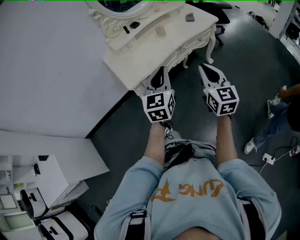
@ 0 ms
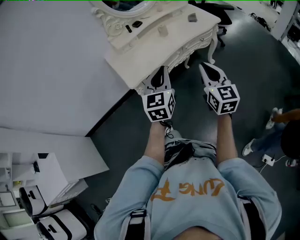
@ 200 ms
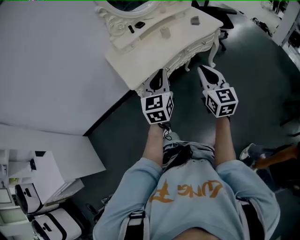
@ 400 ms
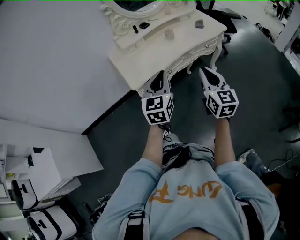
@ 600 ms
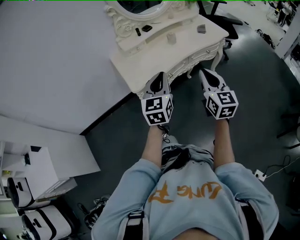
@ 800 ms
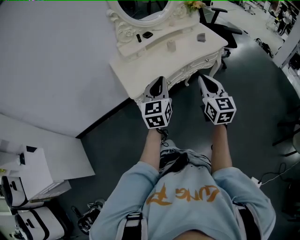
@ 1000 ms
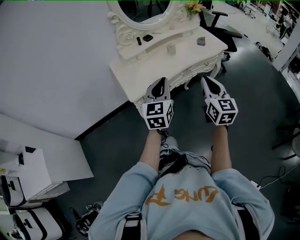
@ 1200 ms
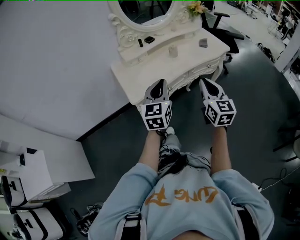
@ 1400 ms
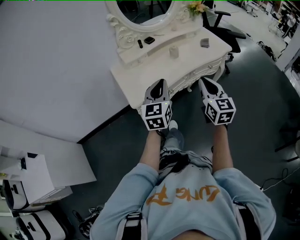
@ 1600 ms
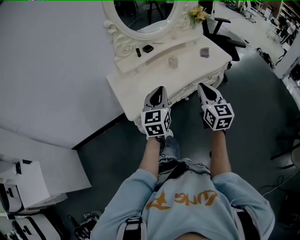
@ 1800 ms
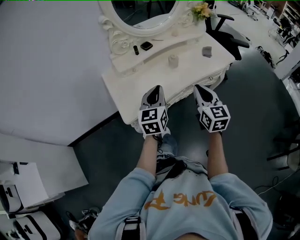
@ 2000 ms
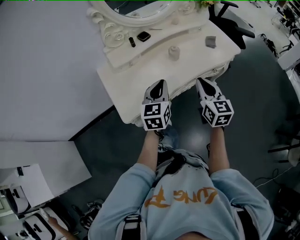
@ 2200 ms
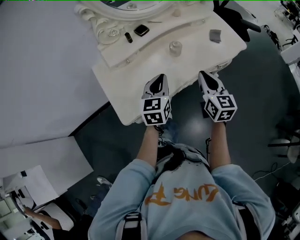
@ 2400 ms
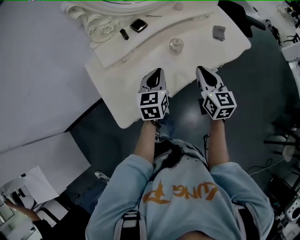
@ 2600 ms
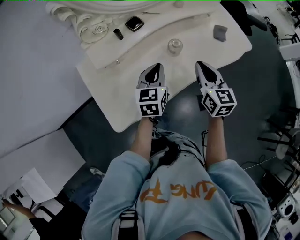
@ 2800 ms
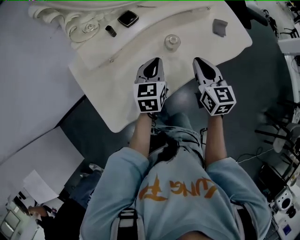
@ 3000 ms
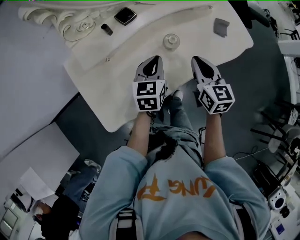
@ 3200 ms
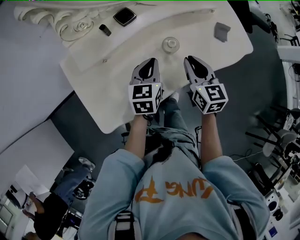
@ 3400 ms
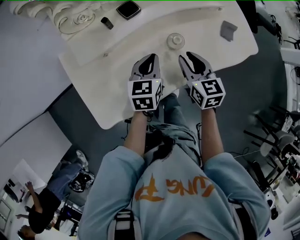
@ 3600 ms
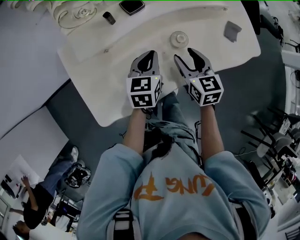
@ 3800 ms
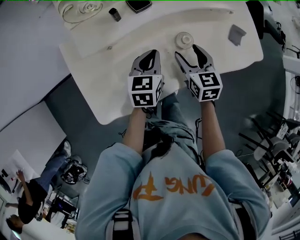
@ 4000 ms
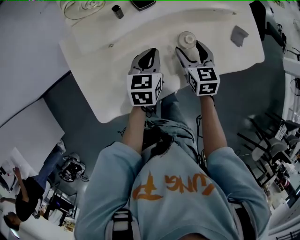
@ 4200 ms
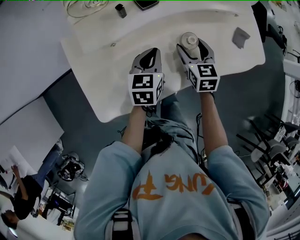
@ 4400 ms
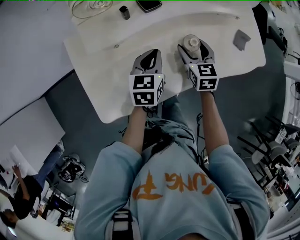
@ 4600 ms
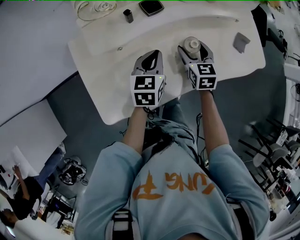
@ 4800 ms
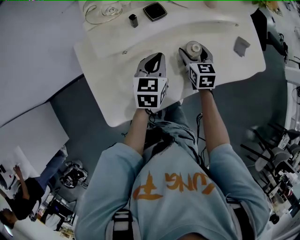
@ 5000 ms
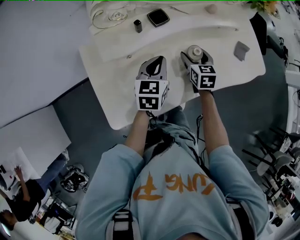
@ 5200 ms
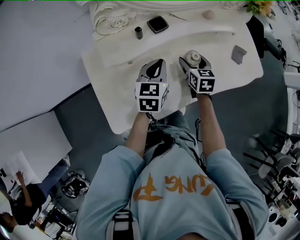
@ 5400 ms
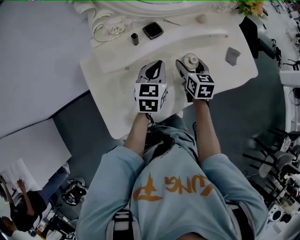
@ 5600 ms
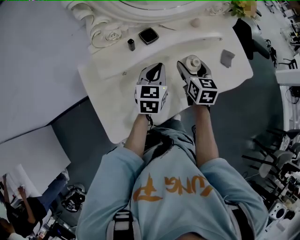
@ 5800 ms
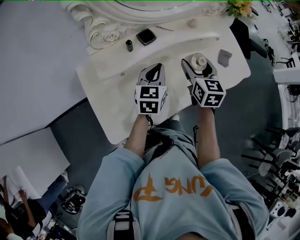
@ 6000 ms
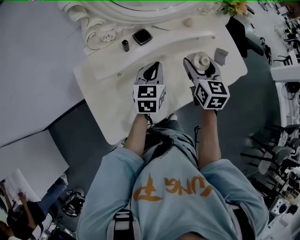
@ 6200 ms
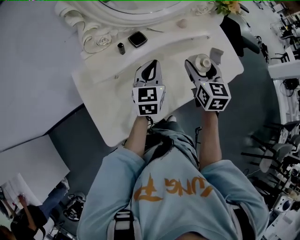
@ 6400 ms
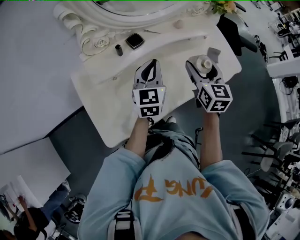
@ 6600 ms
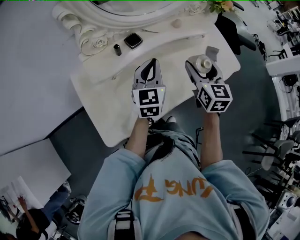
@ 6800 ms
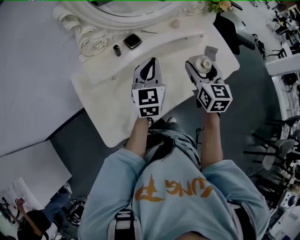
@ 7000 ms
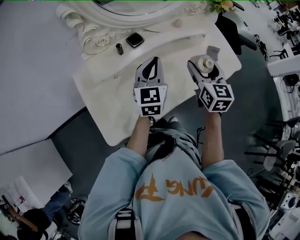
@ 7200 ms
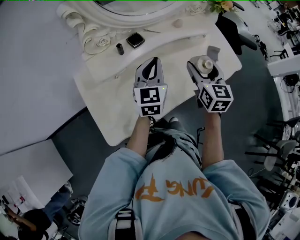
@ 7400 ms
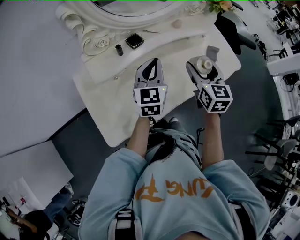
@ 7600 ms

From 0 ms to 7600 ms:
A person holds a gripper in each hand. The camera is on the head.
From 0 ms to 1600 ms: Both grippers move forward, about 10 cm.
From 1600 ms to 3000 ms: Both grippers travel together forward and downward, roughly 35 cm. The left gripper turns by some 20 degrees.
From 3000 ms to 4600 ms: The right gripper shifts roughly 15 cm downward, forward and to the left, swivels about 20 degrees, and opens up. Meanwhile the left gripper heads downward, covering some 5 cm.
From 4600 ms to 6000 ms: The right gripper goes about 15 cm upward. The left gripper heads upward, covering some 5 cm.
From 6000 ms to 7600 ms: The left gripper is displaced upward by some 5 cm. Meanwhile the right gripper is displaced upward and to the right by approximately 10 cm.

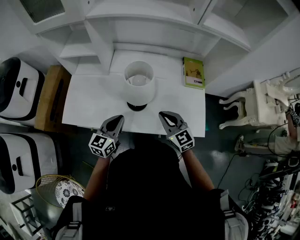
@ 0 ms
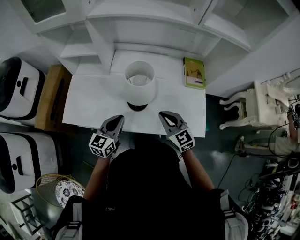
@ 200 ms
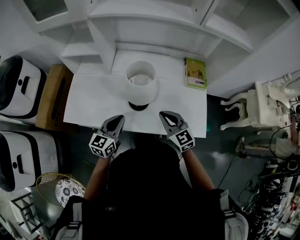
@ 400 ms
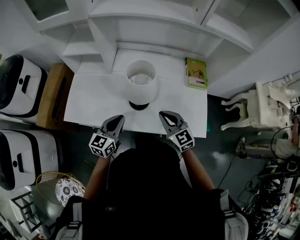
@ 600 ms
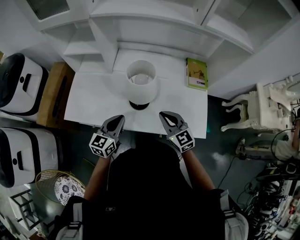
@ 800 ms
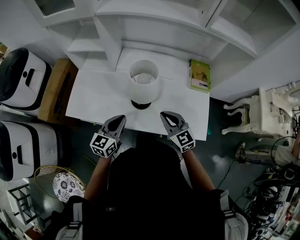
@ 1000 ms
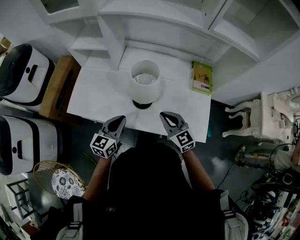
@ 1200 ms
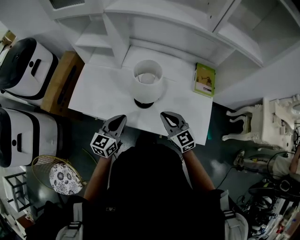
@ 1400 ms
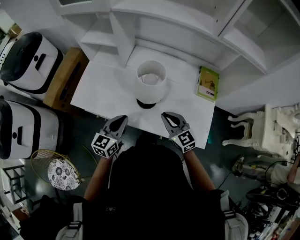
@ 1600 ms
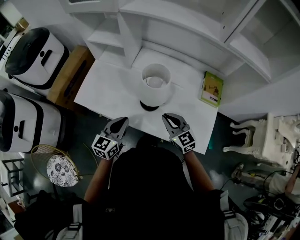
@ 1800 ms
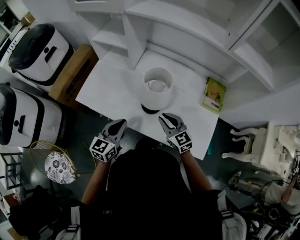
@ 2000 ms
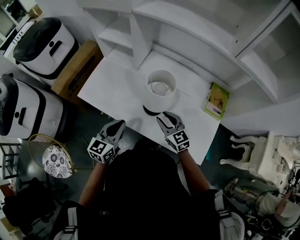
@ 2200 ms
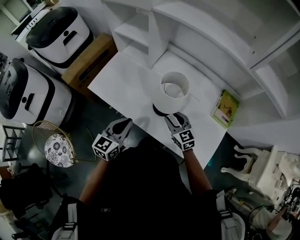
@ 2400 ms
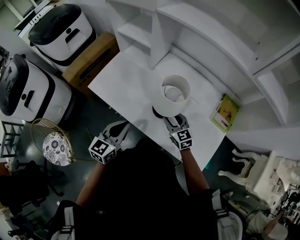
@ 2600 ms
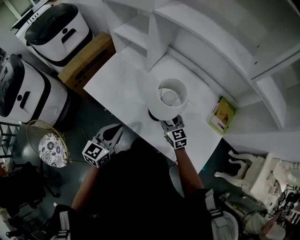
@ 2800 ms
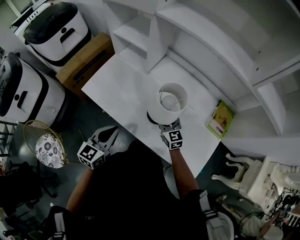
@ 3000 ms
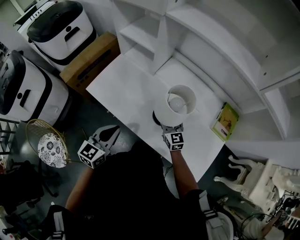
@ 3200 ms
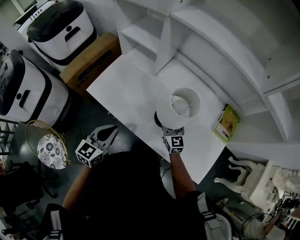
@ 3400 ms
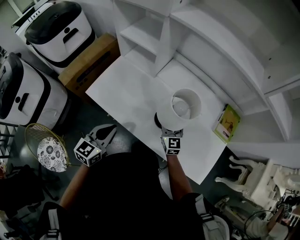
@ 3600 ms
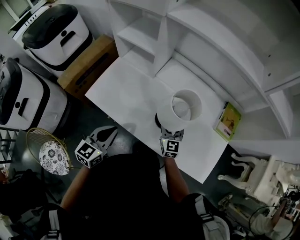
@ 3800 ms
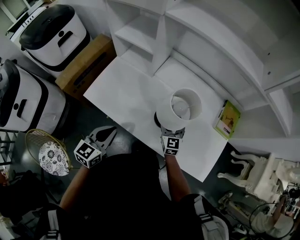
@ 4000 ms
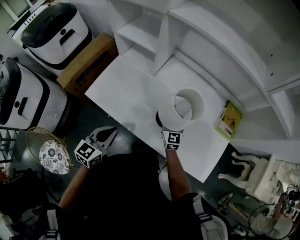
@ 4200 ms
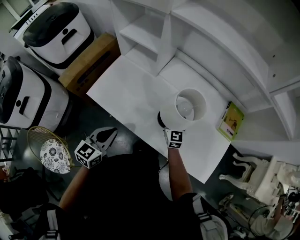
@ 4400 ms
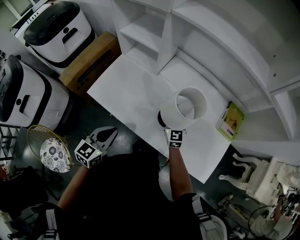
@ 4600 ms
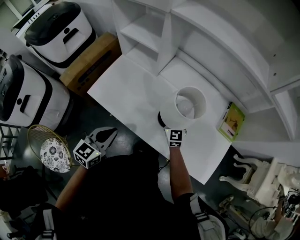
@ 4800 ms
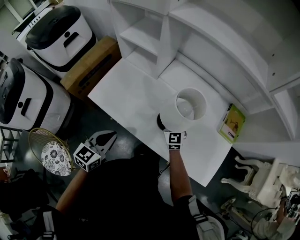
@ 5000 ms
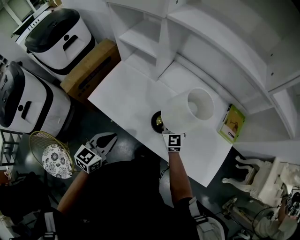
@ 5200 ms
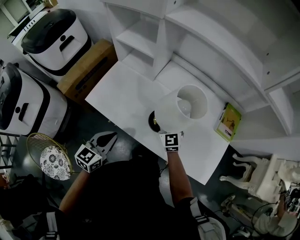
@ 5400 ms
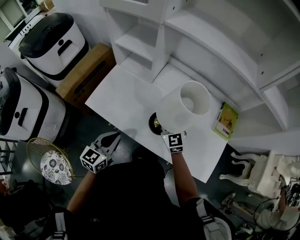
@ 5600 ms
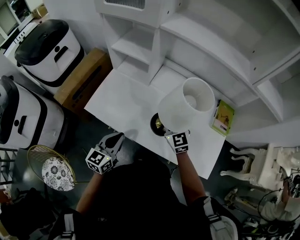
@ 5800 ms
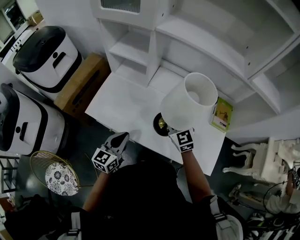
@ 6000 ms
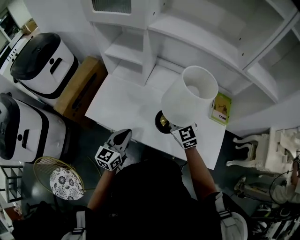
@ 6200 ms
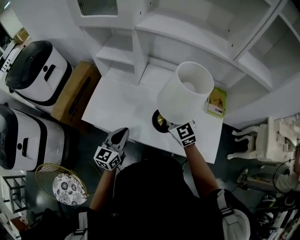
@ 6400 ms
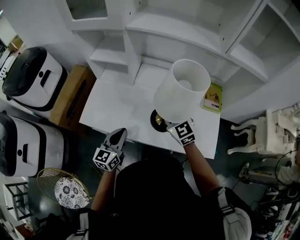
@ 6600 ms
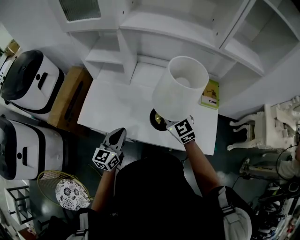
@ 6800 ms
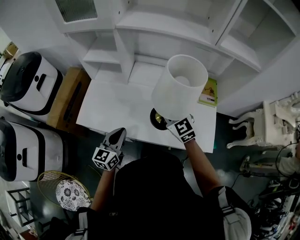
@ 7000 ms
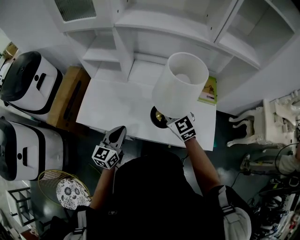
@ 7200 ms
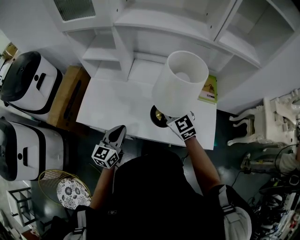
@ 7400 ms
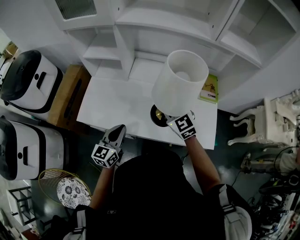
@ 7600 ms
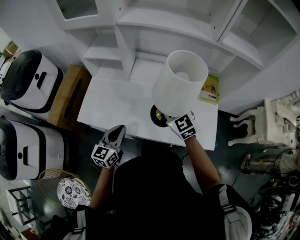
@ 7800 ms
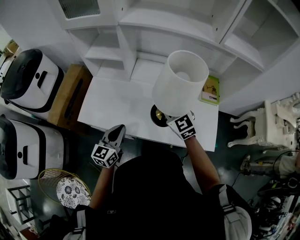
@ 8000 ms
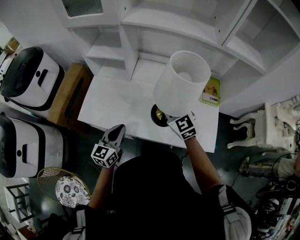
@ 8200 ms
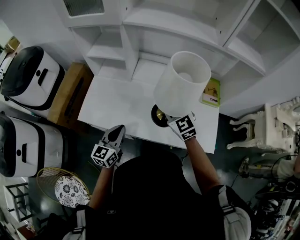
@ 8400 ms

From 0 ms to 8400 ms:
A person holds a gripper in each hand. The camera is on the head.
From 0 ms to 1400 ms: The grippers stay close to where they were, moving slightly.
From 1400 ms to 2800 ms: The left gripper changes place by roughly 5 cm; the right gripper moves forward and downward, roughly 15 cm, and opens.
From 2800 ms to 4200 ms: The left gripper is displaced to the left by about 5 cm. Meanwhile the right gripper goes approximately 5 cm forward, changes its angle by about 30 degrees, and opens up.
From 4200 ms to 5600 ms: The right gripper shifts approximately 10 cm upward and to the left, and closes its fingers.
From 5600 ms to 7000 ms: The left gripper is displaced to the right by some 5 cm. Meanwhile the right gripper goes roughly 15 cm upward, to the right and backward.
From 7000 ms to 8400 ms: The grippers make only small movements.

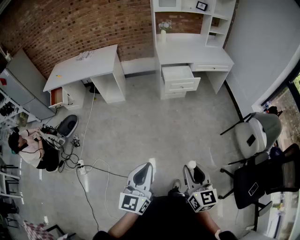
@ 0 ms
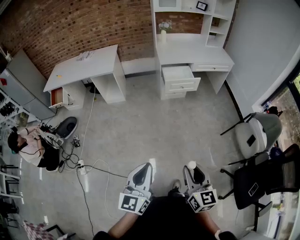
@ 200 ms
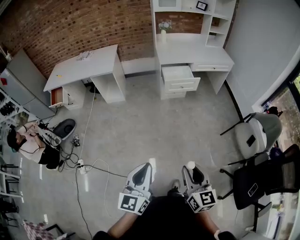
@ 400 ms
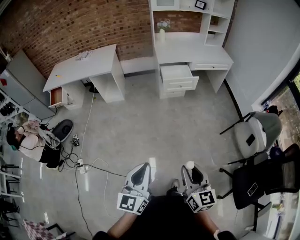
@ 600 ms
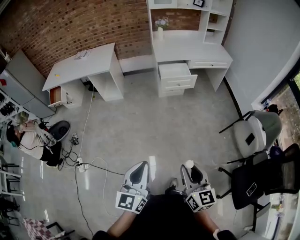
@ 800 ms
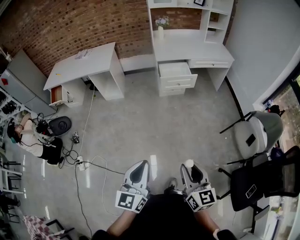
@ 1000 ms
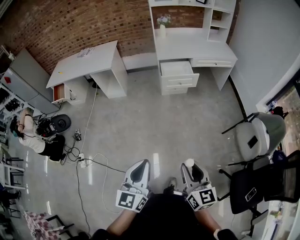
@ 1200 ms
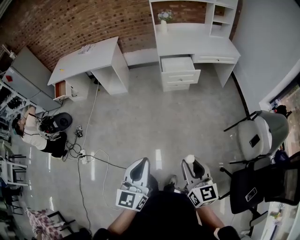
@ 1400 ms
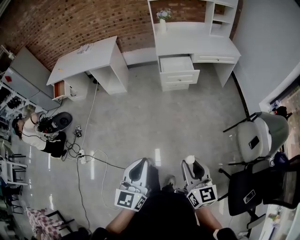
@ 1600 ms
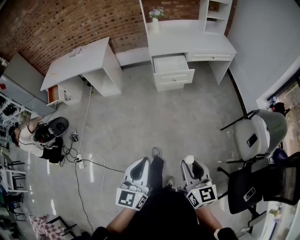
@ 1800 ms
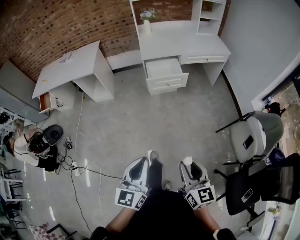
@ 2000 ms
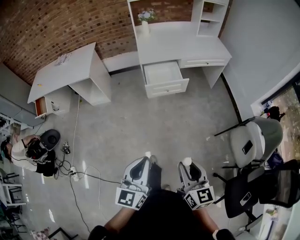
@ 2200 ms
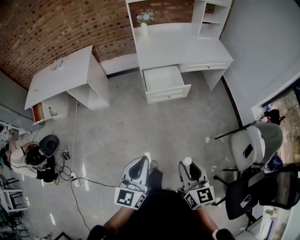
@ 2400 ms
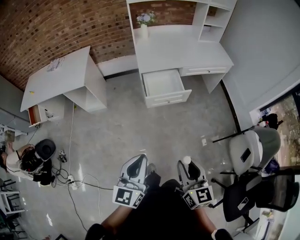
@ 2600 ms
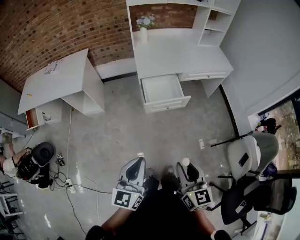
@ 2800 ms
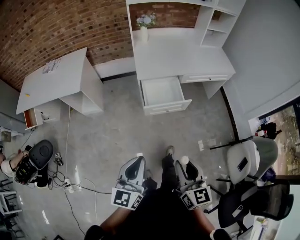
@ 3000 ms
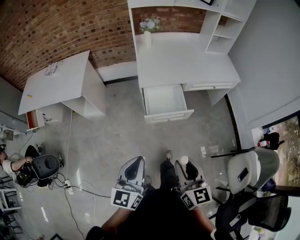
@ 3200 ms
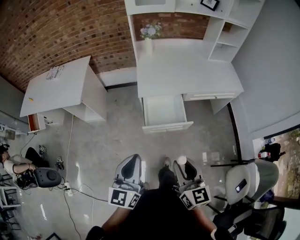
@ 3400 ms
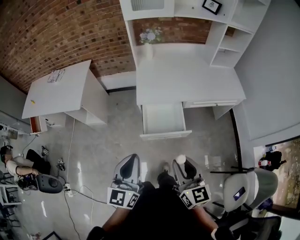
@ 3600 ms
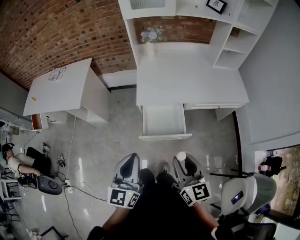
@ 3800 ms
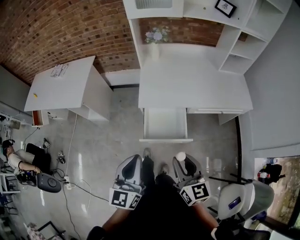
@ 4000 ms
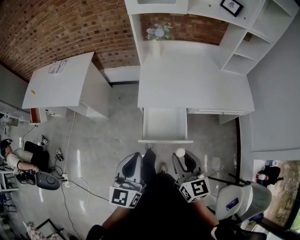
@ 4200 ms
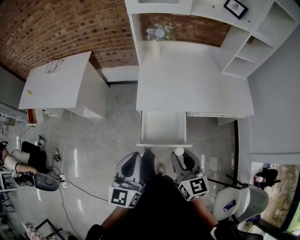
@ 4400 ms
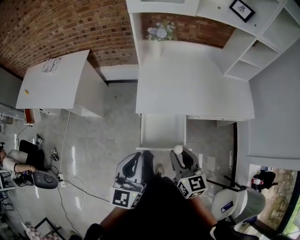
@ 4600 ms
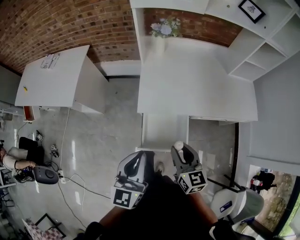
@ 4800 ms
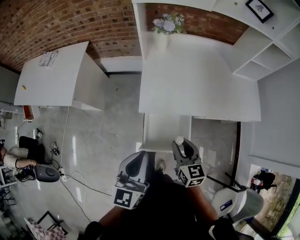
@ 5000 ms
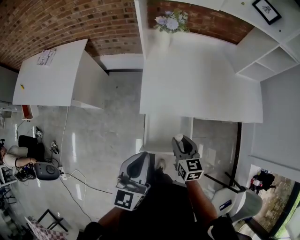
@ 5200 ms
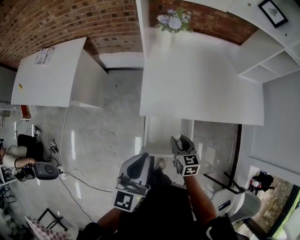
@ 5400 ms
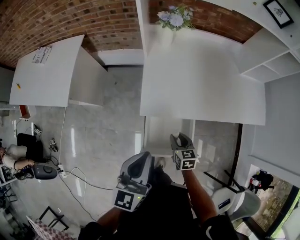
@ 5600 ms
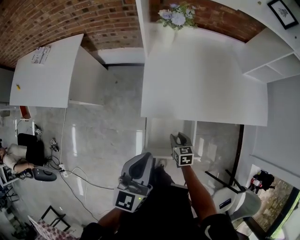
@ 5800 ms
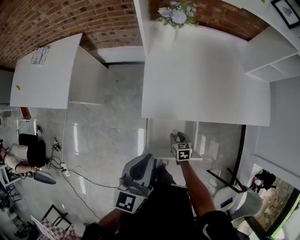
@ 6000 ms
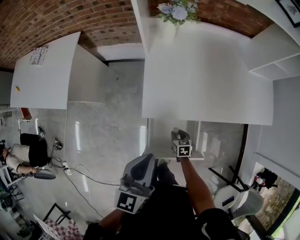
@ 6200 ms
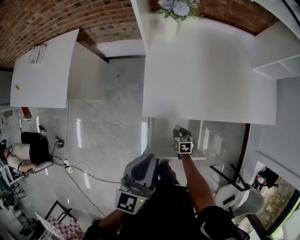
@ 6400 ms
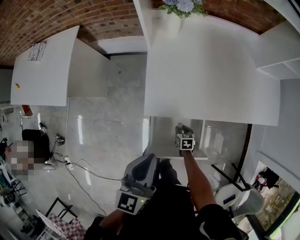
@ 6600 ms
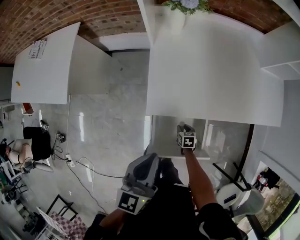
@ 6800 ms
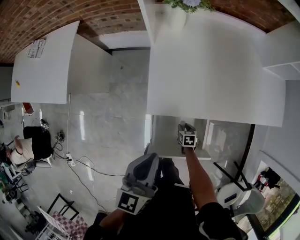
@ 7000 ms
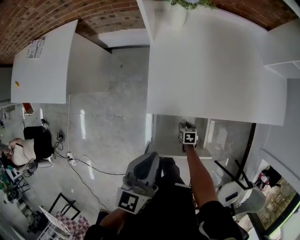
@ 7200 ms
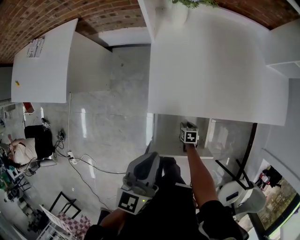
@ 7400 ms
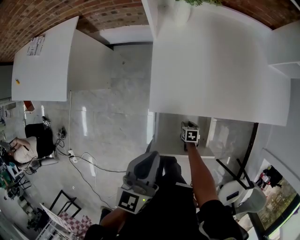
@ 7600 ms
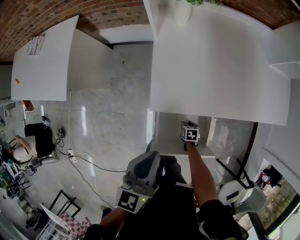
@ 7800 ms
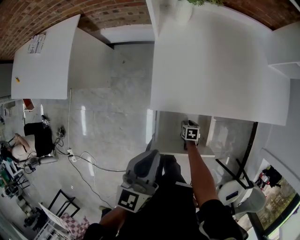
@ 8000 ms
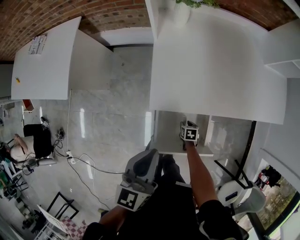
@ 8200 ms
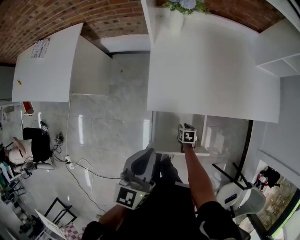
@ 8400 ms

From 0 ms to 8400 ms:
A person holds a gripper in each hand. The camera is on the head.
From 0 ms to 1400 ms: The grippers both shift to the right by roughly 10 cm.
From 1400 ms to 2800 ms: Both grippers move forward, roughly 40 cm.
From 2800 ms to 4200 ms: Both grippers travel together forward, some 40 cm.
From 4200 ms to 5600 ms: The left gripper is displaced forward by approximately 20 cm. Meanwhile the right gripper moves downward and forward, roughly 35 cm, and swivels approximately 30 degrees.
From 5600 ms to 7000 ms: The left gripper moves downward and forward, approximately 10 cm. The right gripper shifts approximately 25 cm downward, and turns by roughly 20 degrees.
From 7000 ms to 8400 ms: There are only small adjustments of the grippers.
